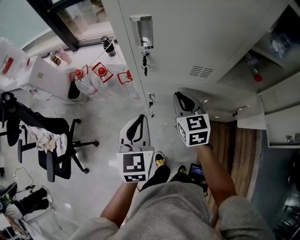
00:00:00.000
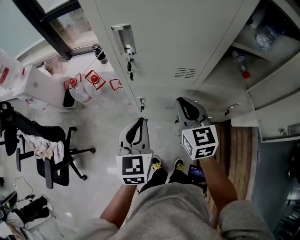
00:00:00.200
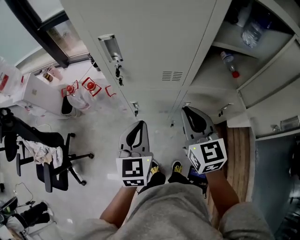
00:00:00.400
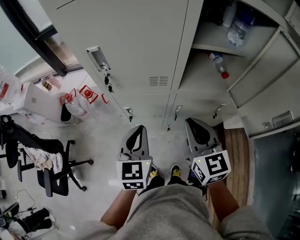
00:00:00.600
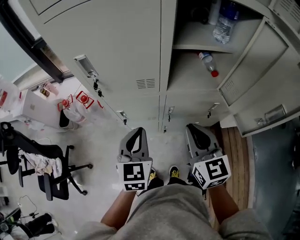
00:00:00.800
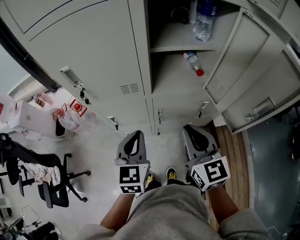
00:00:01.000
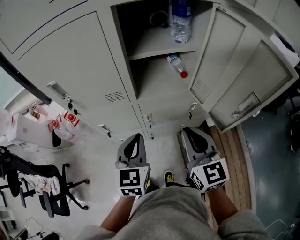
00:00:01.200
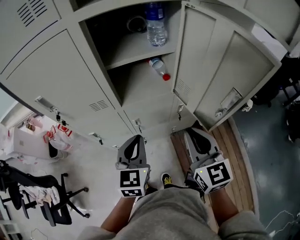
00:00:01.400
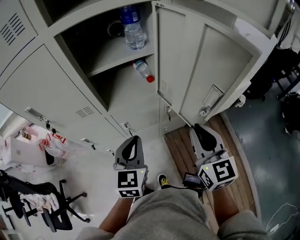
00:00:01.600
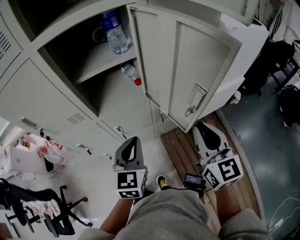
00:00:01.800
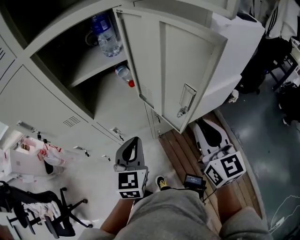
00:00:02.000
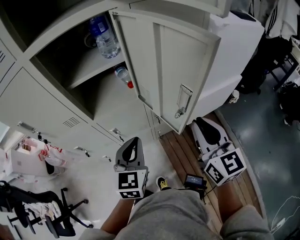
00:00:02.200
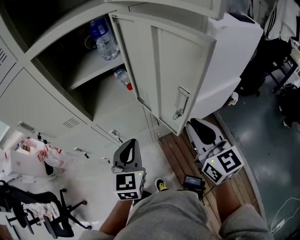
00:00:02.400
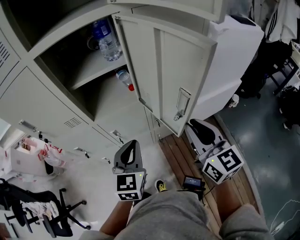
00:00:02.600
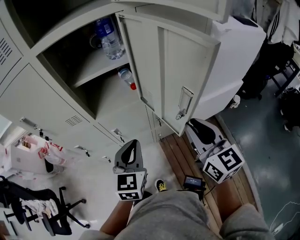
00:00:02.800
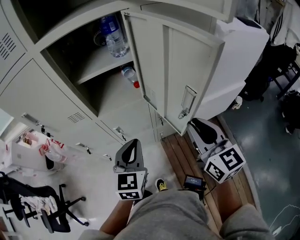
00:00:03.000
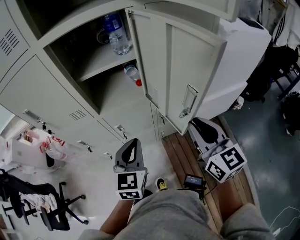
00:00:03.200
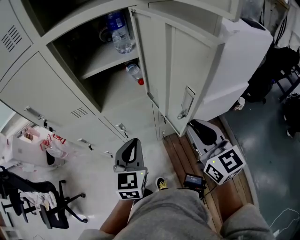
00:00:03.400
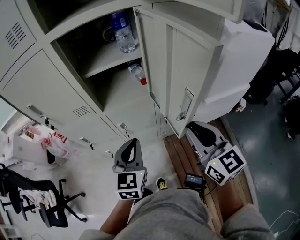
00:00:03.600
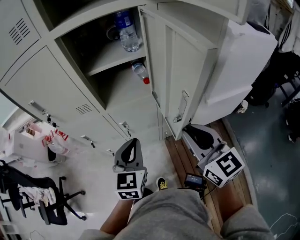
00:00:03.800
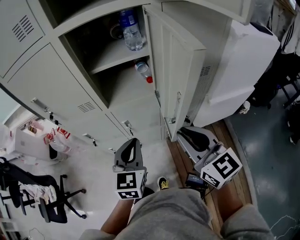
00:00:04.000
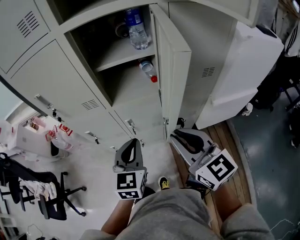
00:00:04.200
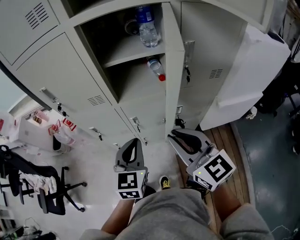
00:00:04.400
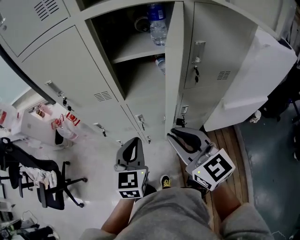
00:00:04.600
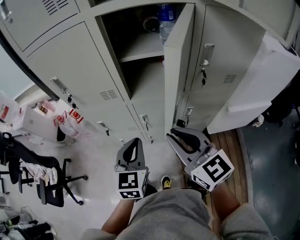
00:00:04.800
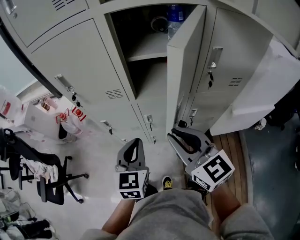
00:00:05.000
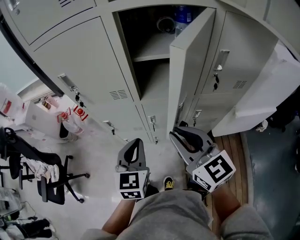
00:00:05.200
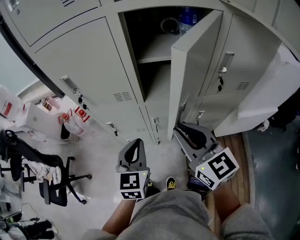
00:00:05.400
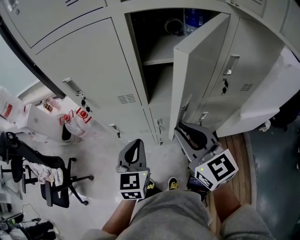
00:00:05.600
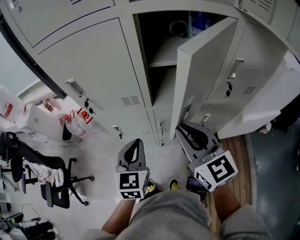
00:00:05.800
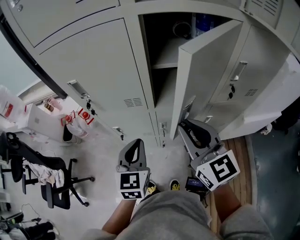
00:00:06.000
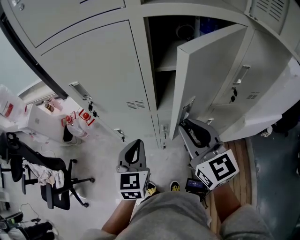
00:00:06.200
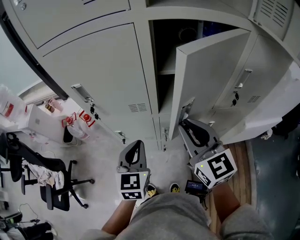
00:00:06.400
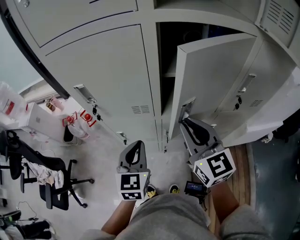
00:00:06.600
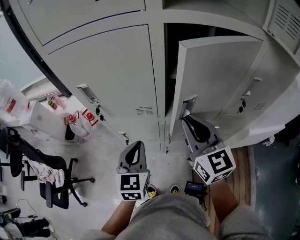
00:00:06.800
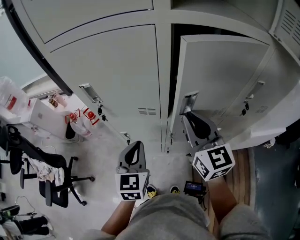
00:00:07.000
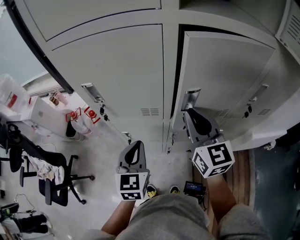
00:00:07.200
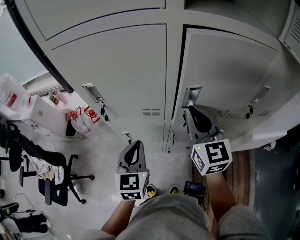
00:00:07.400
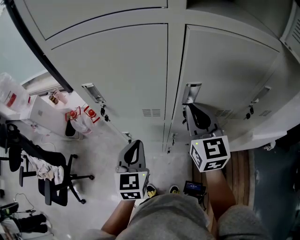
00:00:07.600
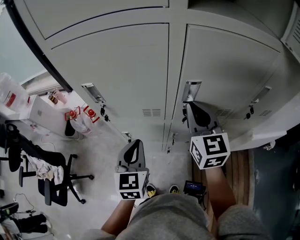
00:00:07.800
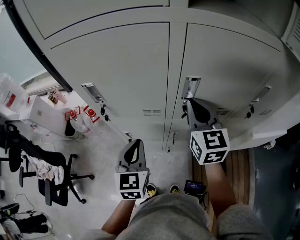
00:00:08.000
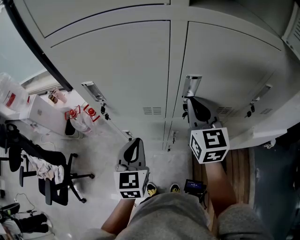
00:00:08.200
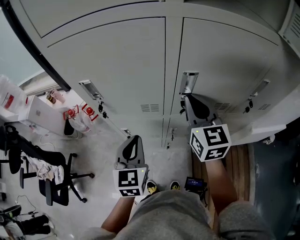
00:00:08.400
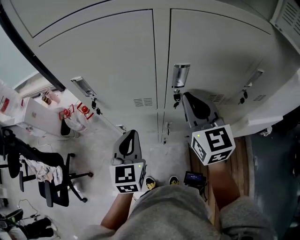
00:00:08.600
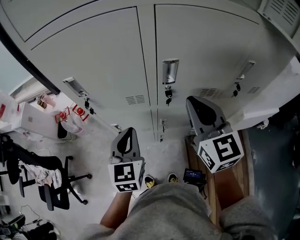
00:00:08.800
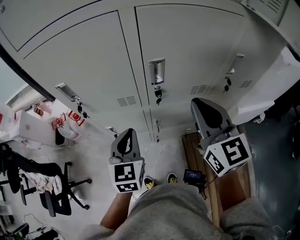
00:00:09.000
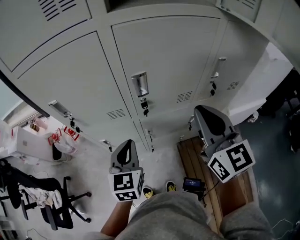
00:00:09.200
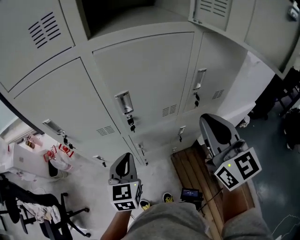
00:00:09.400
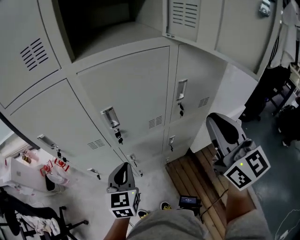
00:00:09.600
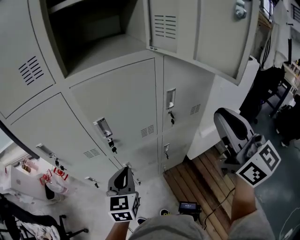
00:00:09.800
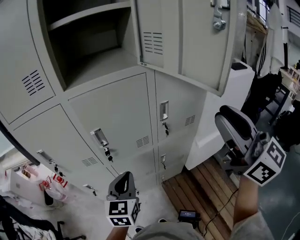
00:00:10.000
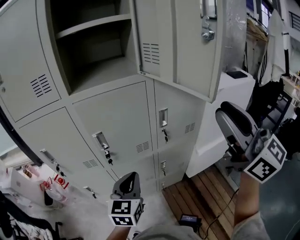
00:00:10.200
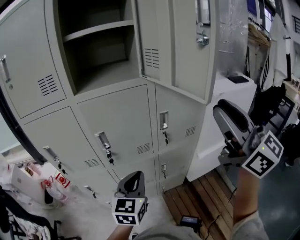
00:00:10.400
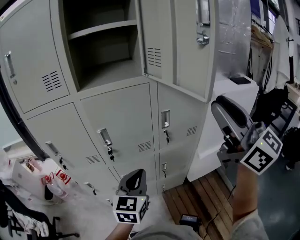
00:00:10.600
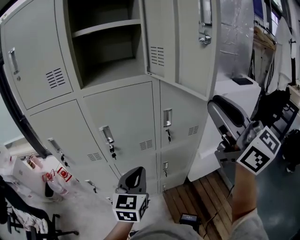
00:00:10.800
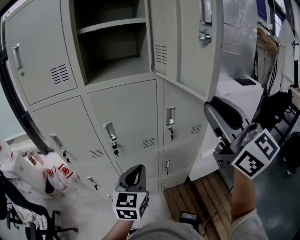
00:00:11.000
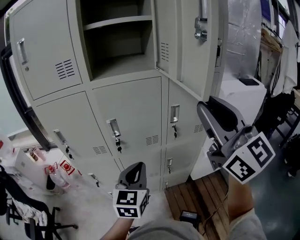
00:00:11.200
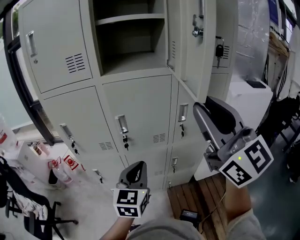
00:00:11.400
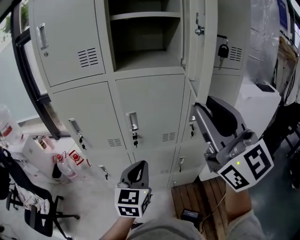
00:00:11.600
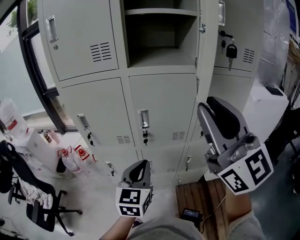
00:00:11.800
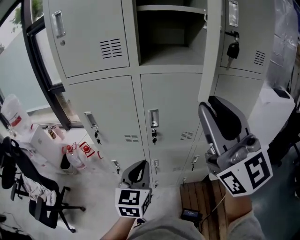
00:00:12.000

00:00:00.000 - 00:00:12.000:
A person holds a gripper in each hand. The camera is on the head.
00:00:00.000 - 00:00:01.600: The right gripper is displaced to the right and backward by some 50 cm, and rotates roughly 30 degrees; the left gripper moves to the right, about 35 cm, and rotates some 30 degrees.
00:00:01.600 - 00:00:03.000: Both grippers travel together to the right, about 5 cm.
00:00:03.000 - 00:00:04.400: The right gripper goes roughly 15 cm to the left, and swivels about 20 degrees; the left gripper is displaced to the left by some 5 cm.
00:00:04.400 - 00:00:06.000: The left gripper travels to the left and forward by about 15 cm, while the right gripper travels forward and to the left by approximately 15 cm.
00:00:06.000 - 00:00:07.600: The left gripper goes roughly 10 cm to the left and forward; the right gripper travels forward by about 15 cm.
00:00:07.600 - 00:00:09.000: The right gripper shifts about 10 cm backward and to the right, while the left gripper moves roughly 5 cm.
00:00:09.000 - 00:00:10.400: The left gripper is displaced to the right by approximately 25 cm, and changes its angle by some 20 degrees, while the right gripper goes some 35 cm to the right, upward and backward, and rotates approximately 30 degrees.
00:00:10.400 - 00:00:12.000: Both grippers move to the left, some 20 cm.

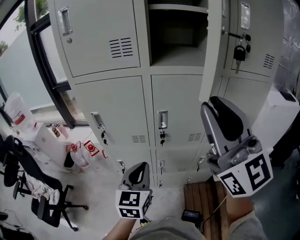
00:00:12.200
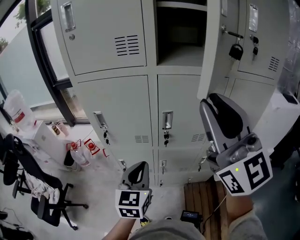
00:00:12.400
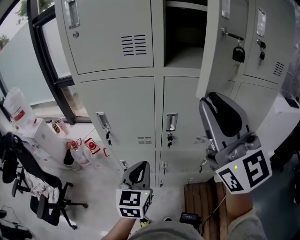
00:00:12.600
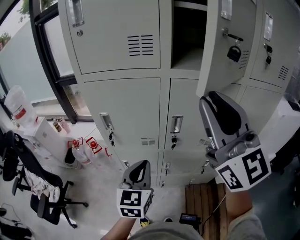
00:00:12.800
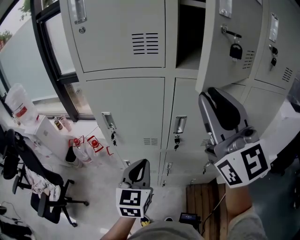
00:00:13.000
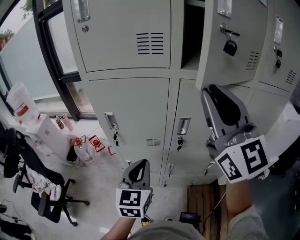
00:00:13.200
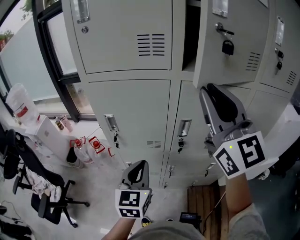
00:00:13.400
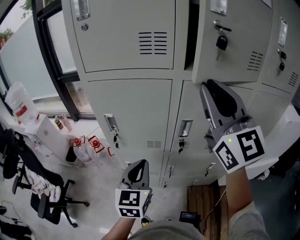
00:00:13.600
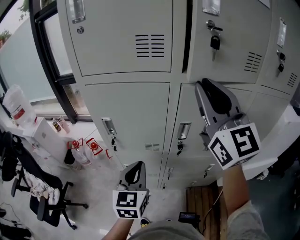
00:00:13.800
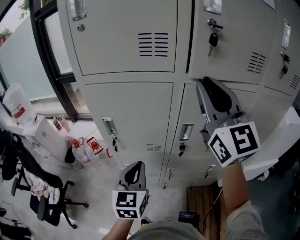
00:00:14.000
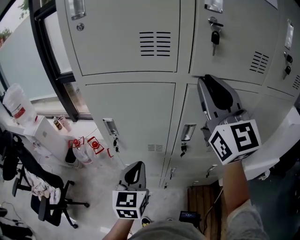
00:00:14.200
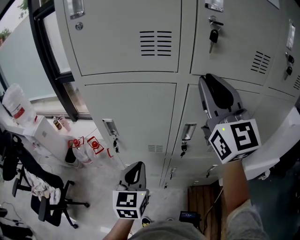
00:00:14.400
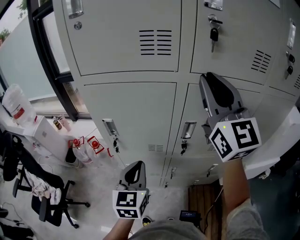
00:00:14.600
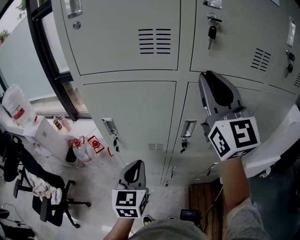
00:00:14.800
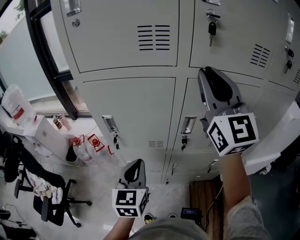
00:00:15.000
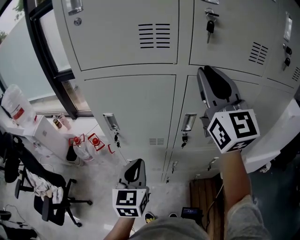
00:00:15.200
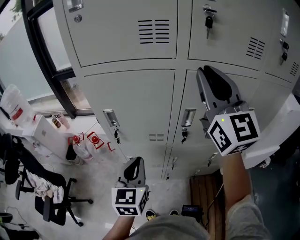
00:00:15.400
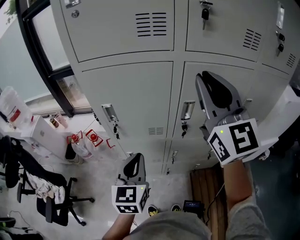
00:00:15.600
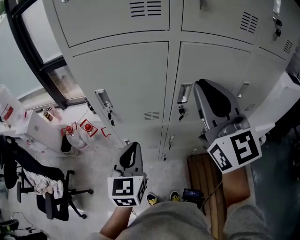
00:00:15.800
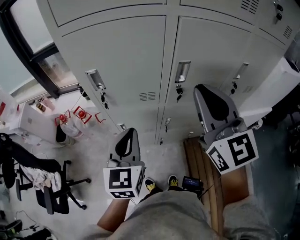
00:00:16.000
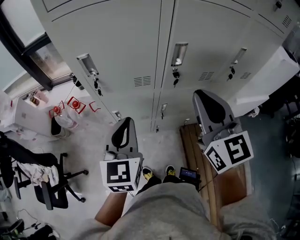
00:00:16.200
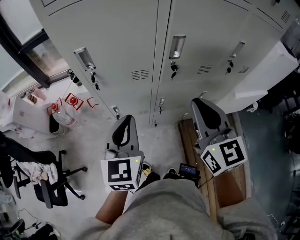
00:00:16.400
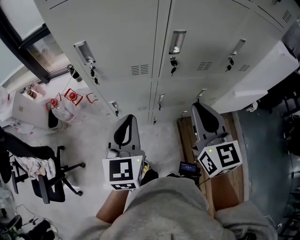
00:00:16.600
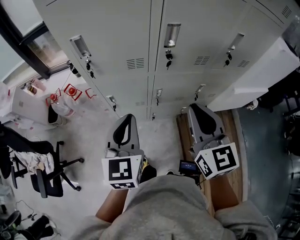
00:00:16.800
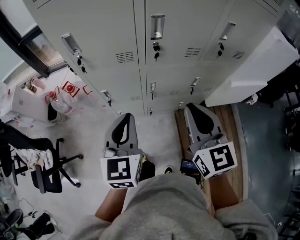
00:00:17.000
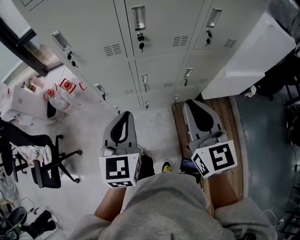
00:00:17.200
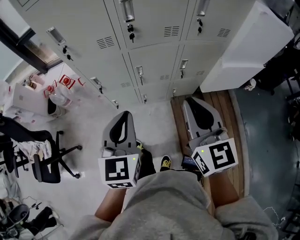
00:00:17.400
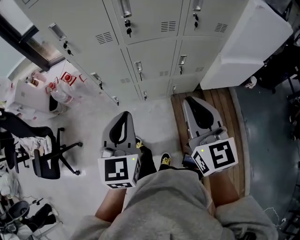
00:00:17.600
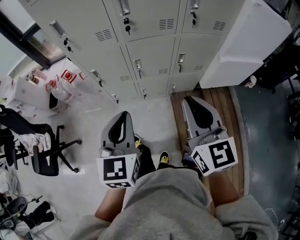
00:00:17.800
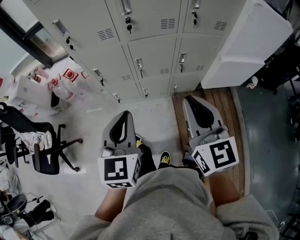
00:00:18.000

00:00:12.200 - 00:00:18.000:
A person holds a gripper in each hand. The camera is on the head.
00:00:12.200 - 00:00:13.600: The left gripper goes roughly 10 cm to the left and forward, while the right gripper travels forward and to the left by approximately 15 cm.
00:00:13.600 - 00:00:15.000: The right gripper goes about 5 cm forward.
00:00:15.000 - 00:00:16.600: The left gripper travels backward by approximately 10 cm; the right gripper moves downward and backward, approximately 35 cm, and turns by some 30 degrees.
00:00:16.600 - 00:00:18.000: The grippers both shift backward and to the right by about 25 cm.

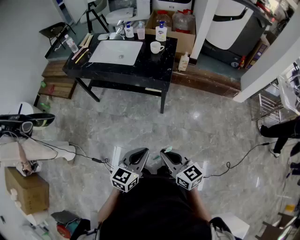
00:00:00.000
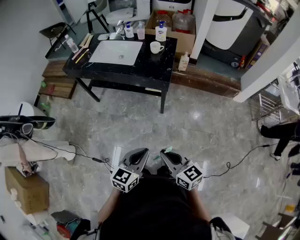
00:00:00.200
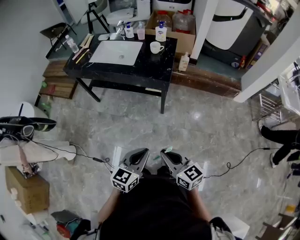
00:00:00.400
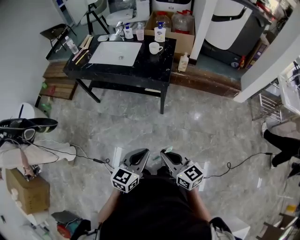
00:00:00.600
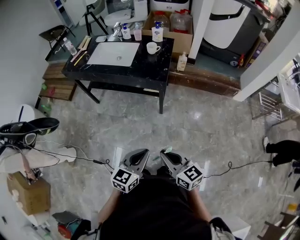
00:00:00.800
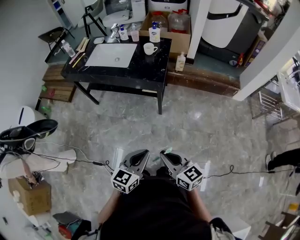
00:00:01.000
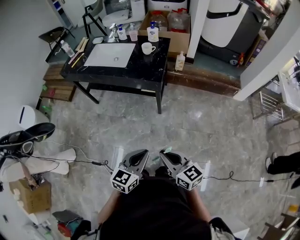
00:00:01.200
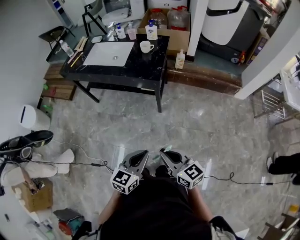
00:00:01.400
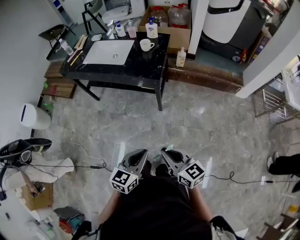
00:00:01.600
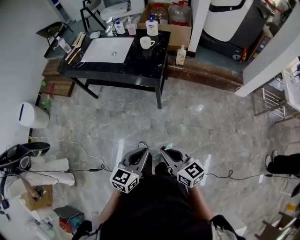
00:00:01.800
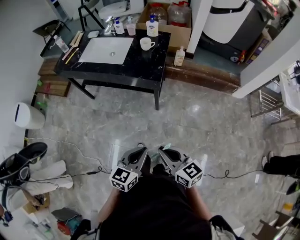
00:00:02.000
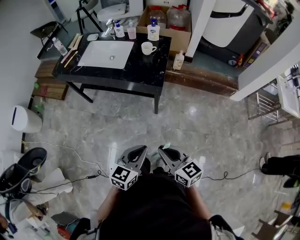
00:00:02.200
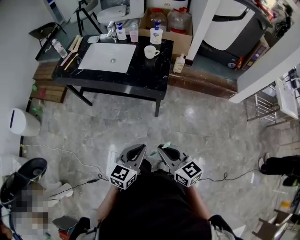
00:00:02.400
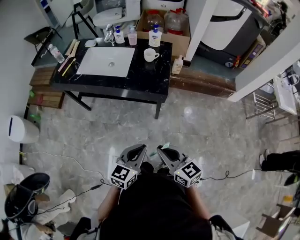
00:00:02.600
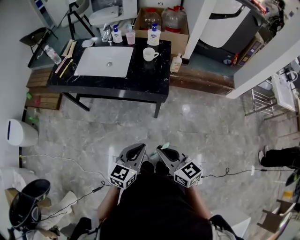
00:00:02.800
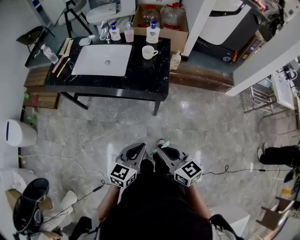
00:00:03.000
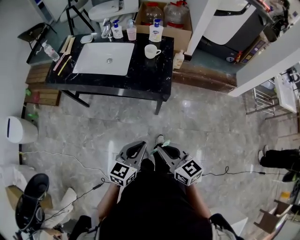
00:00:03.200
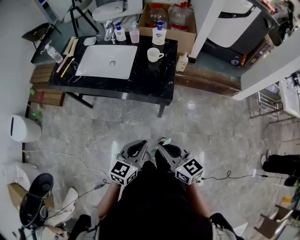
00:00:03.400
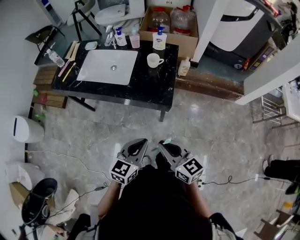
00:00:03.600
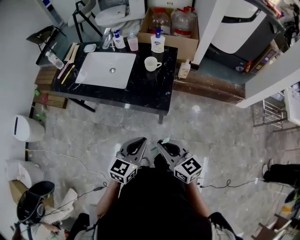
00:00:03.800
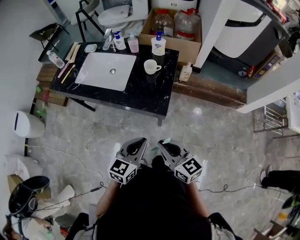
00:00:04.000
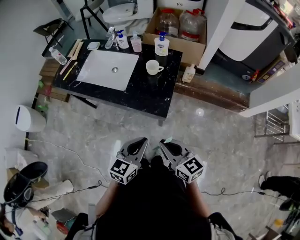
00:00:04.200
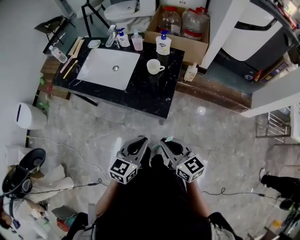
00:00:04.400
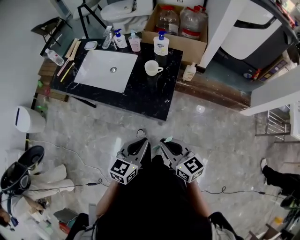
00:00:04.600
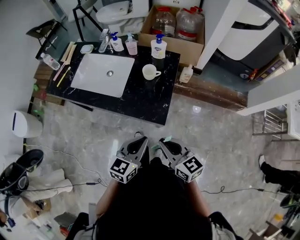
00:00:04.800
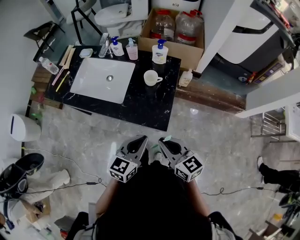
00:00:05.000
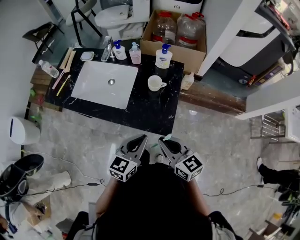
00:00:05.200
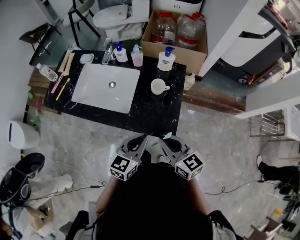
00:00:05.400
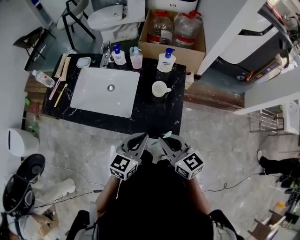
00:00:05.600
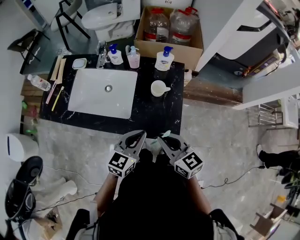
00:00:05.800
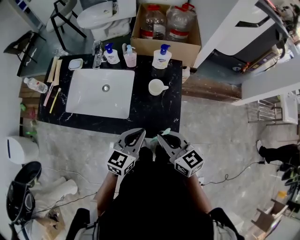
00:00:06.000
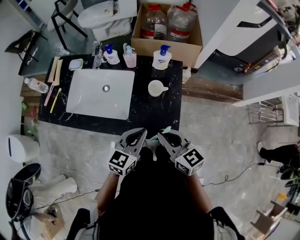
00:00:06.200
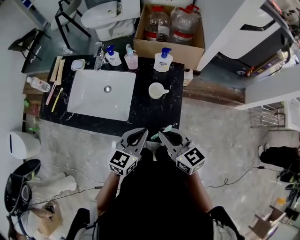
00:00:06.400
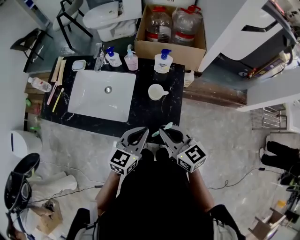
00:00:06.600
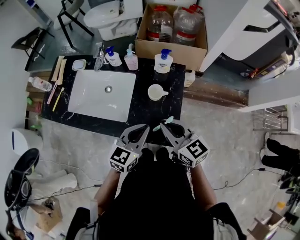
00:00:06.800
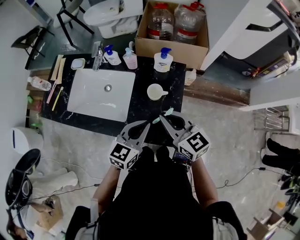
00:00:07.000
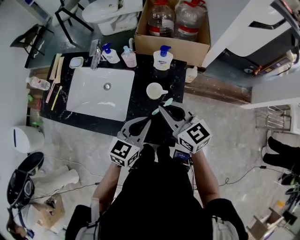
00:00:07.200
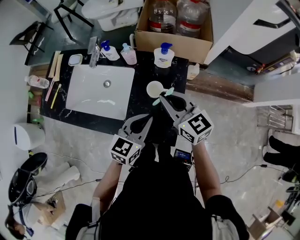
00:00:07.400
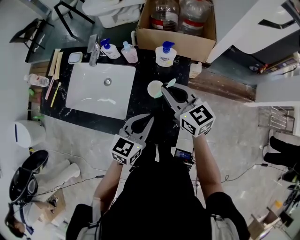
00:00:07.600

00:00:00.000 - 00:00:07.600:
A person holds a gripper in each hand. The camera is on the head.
00:00:00.000 - 00:00:01.600: Both grippers move to the right, about 10 cm.
00:00:01.600 - 00:00:03.000: Both grippers move forward and to the left, about 20 cm.
00:00:03.000 - 00:00:04.600: Both grippers move forward and to the right, roughly 20 cm.
00:00:04.600 - 00:00:06.000: Both grippers move forward and to the left, some 20 cm.
00:00:06.000 - 00:00:07.600: The left gripper moves forward and to the right, roughly 10 cm. The right gripper heads forward, covering roughly 20 cm.
